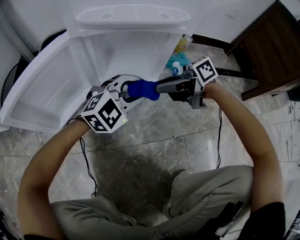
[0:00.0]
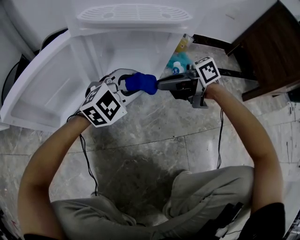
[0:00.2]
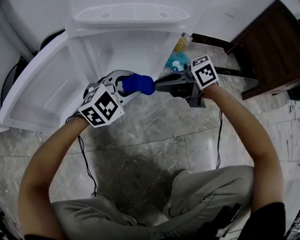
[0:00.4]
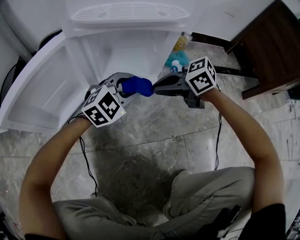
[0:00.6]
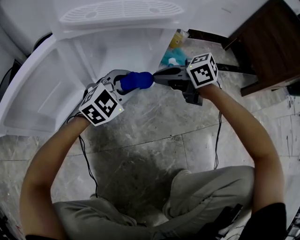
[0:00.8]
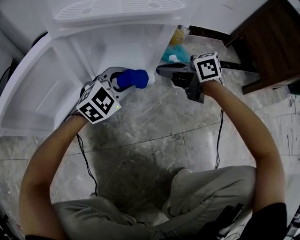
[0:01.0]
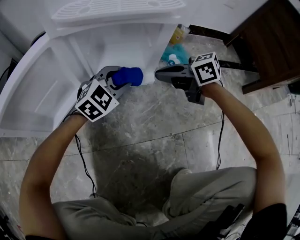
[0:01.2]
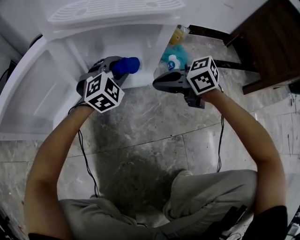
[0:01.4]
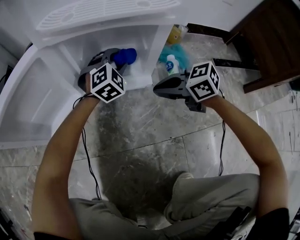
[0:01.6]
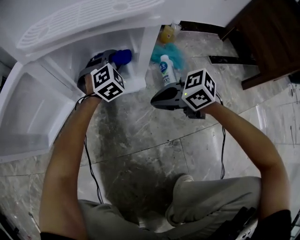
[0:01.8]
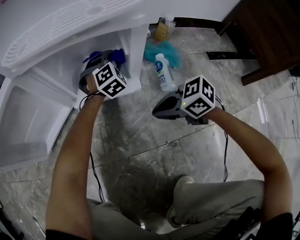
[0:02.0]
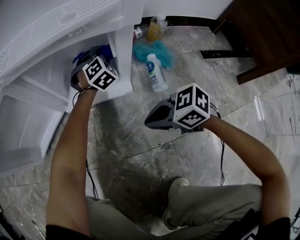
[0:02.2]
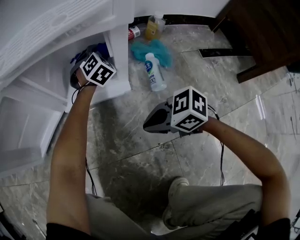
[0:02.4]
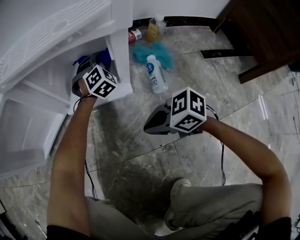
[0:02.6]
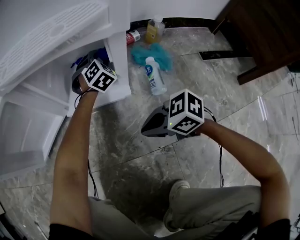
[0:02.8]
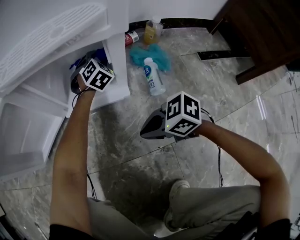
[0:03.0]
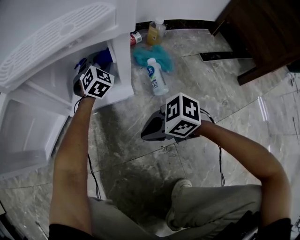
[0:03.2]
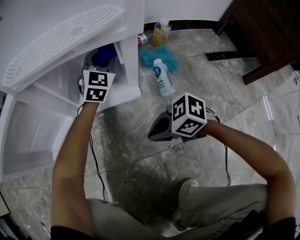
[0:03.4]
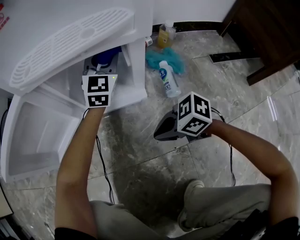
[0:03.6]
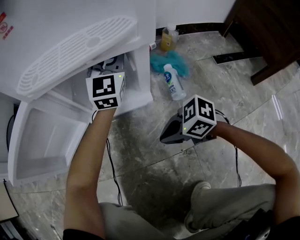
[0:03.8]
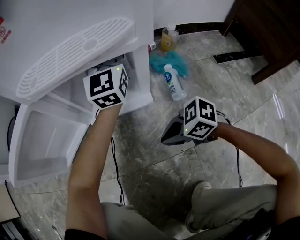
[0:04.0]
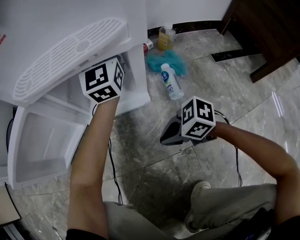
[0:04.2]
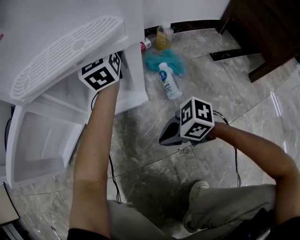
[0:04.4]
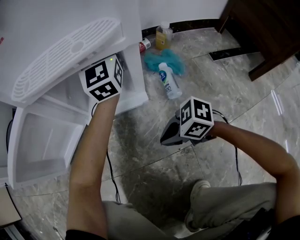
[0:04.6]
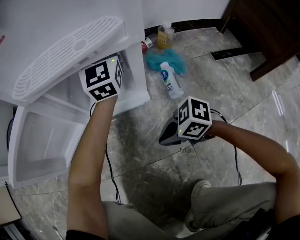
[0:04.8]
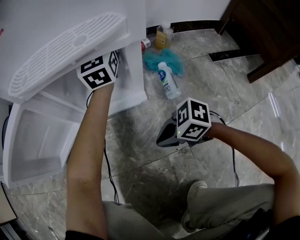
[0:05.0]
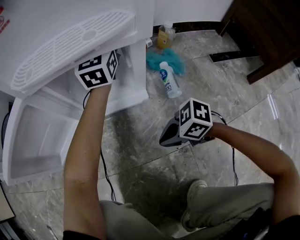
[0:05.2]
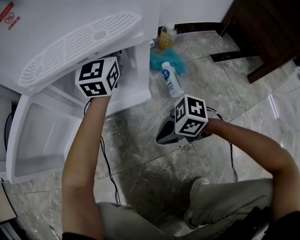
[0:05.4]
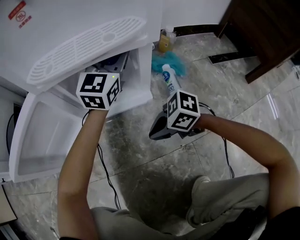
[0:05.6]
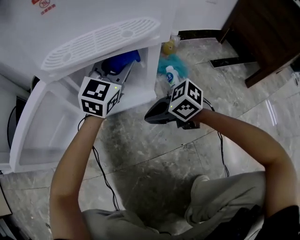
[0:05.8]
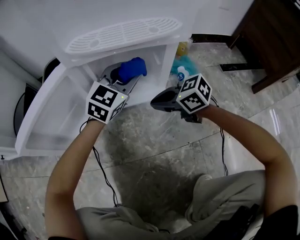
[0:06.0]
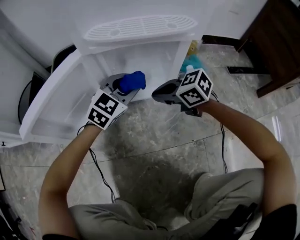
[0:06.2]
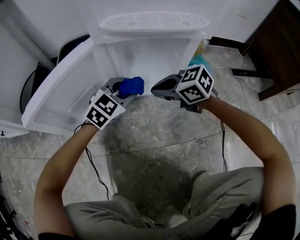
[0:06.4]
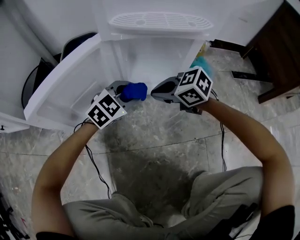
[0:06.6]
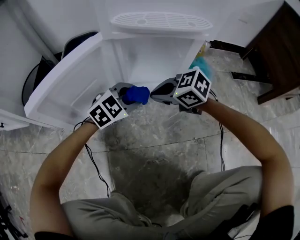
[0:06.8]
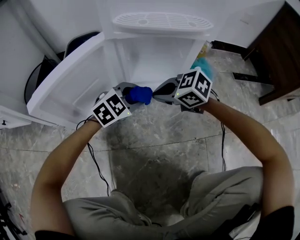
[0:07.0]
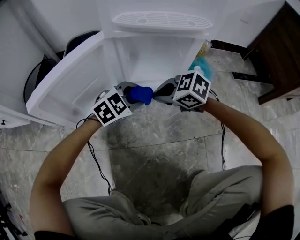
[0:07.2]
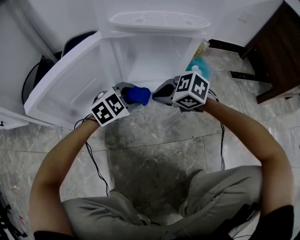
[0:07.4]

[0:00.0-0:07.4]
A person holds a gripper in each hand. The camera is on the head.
0:00.0 to 0:01.4: The right gripper changes place by about 5 cm, turns by about 30 degrees, and closes. Meanwhile the left gripper ends up about 15 cm from where it was, and swivels roughly 20 degrees.
0:01.4 to 0:03.0: The left gripper goes about 20 cm to the right, forward and downward, and changes its angle by approximately 20 degrees. Meanwhile the right gripper shifts approximately 10 cm backward and downward.
0:03.0 to 0:04.4: The left gripper travels upward by about 25 cm, and points its fingers roughly 50 degrees further upward.
0:04.4 to 0:06.0: The left gripper changes place by about 20 cm, and changes its angle by about 40 degrees. The right gripper shifts by about 15 cm, and rotates approximately 20 degrees.
0:06.0 to 0:07.4: The right gripper ends up about 5 cm from where it was, and swivels some 30 degrees; the left gripper shifts by some 15 cm, and changes its angle by about 30 degrees.

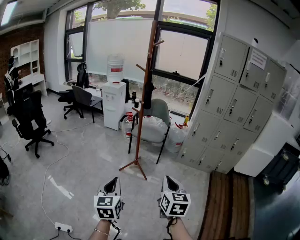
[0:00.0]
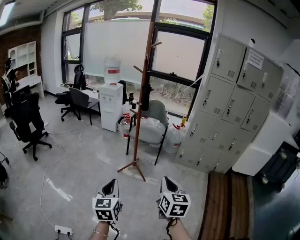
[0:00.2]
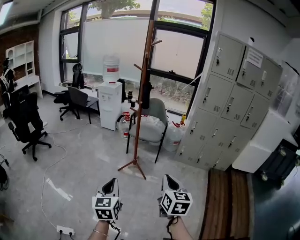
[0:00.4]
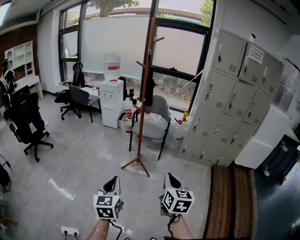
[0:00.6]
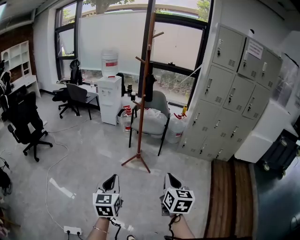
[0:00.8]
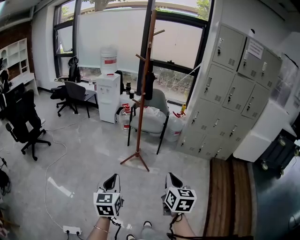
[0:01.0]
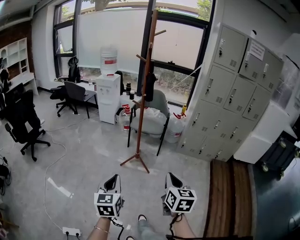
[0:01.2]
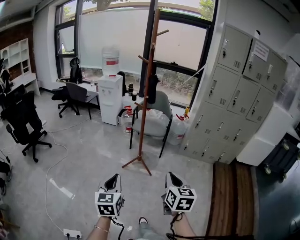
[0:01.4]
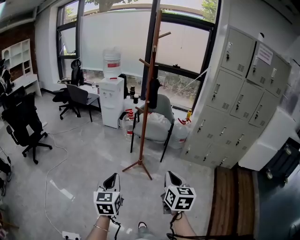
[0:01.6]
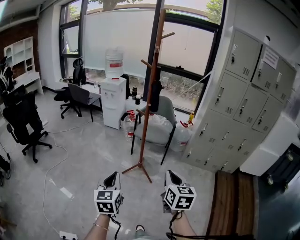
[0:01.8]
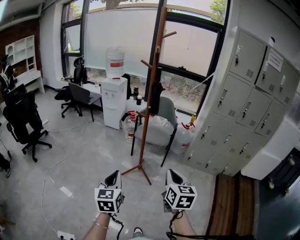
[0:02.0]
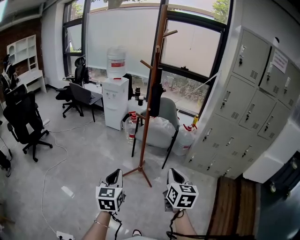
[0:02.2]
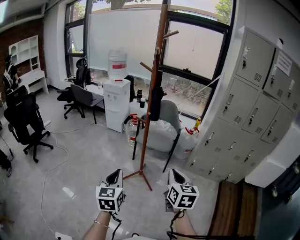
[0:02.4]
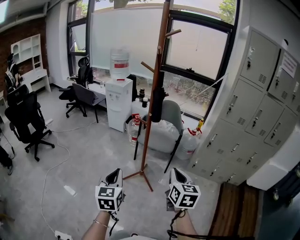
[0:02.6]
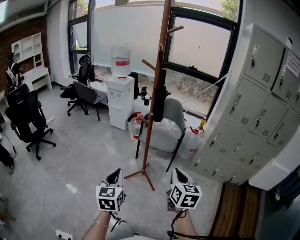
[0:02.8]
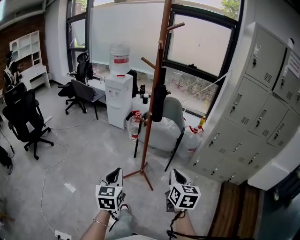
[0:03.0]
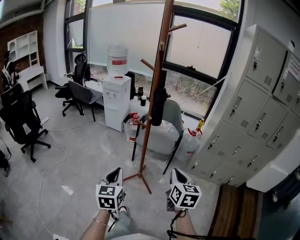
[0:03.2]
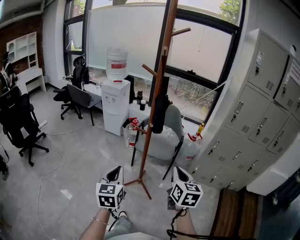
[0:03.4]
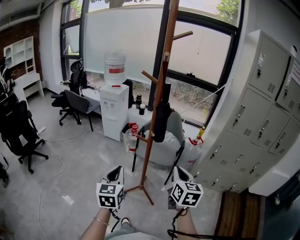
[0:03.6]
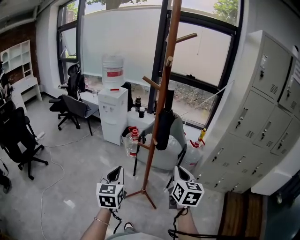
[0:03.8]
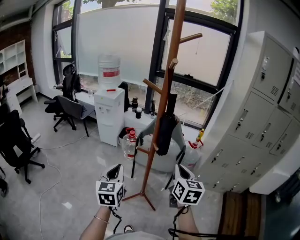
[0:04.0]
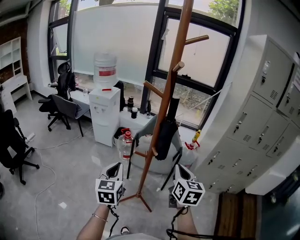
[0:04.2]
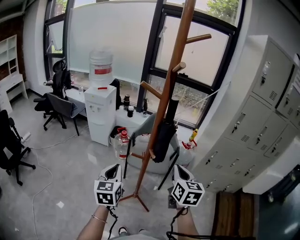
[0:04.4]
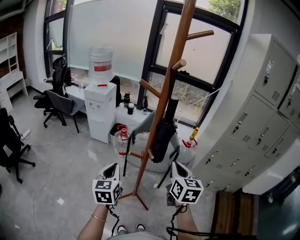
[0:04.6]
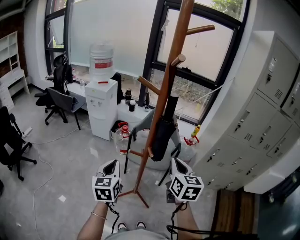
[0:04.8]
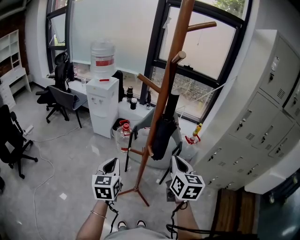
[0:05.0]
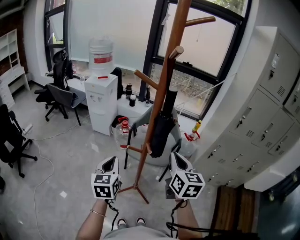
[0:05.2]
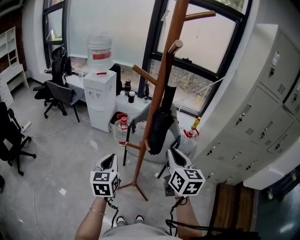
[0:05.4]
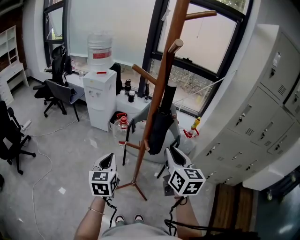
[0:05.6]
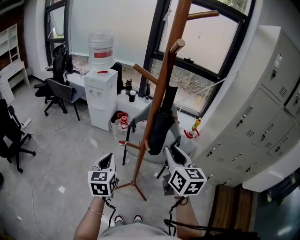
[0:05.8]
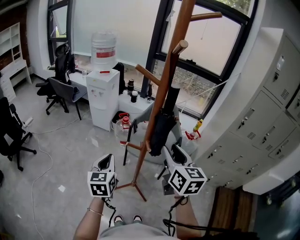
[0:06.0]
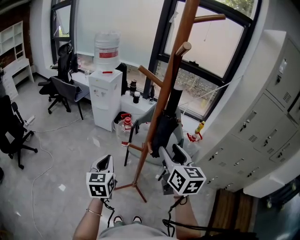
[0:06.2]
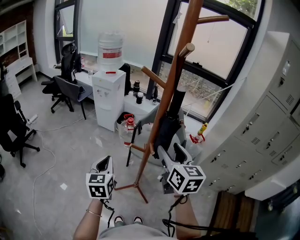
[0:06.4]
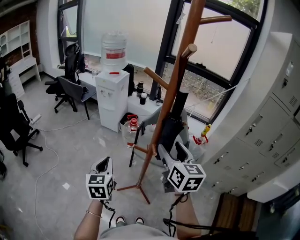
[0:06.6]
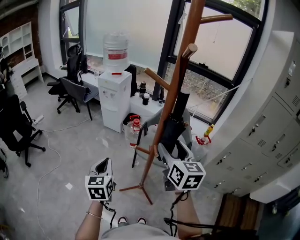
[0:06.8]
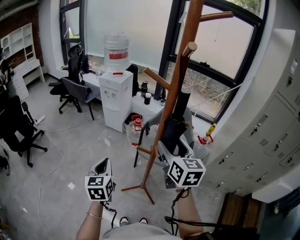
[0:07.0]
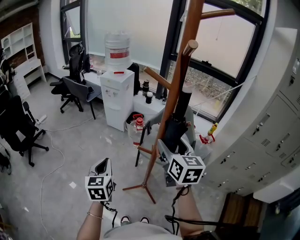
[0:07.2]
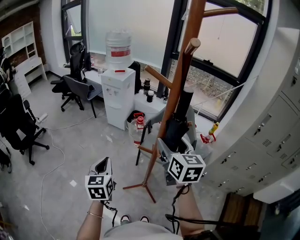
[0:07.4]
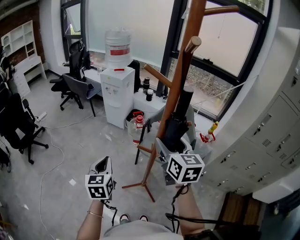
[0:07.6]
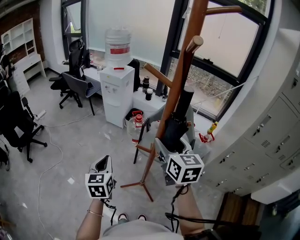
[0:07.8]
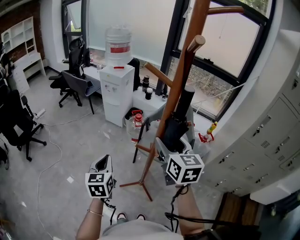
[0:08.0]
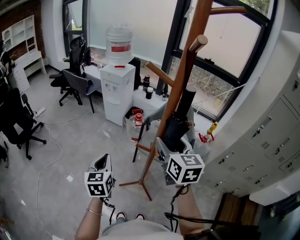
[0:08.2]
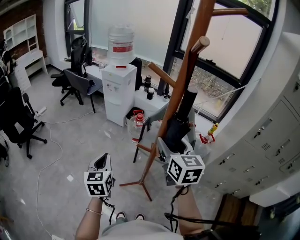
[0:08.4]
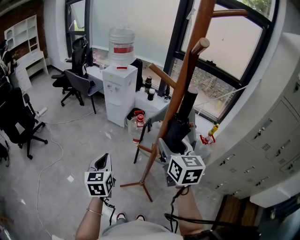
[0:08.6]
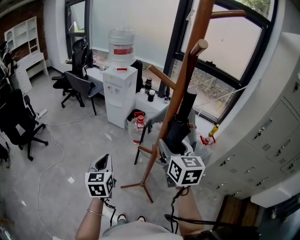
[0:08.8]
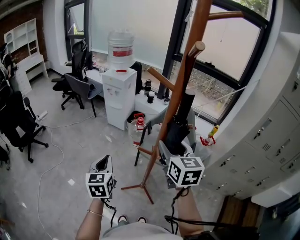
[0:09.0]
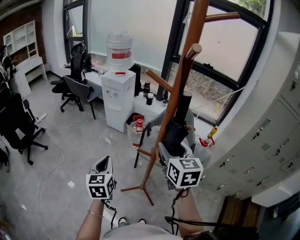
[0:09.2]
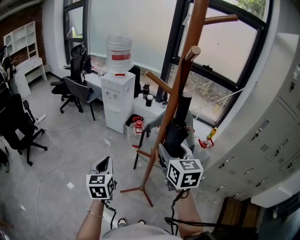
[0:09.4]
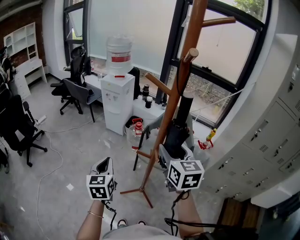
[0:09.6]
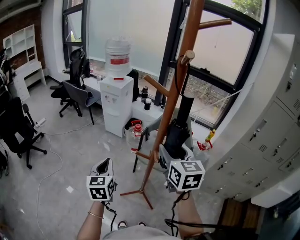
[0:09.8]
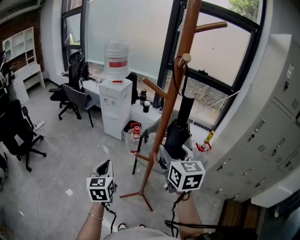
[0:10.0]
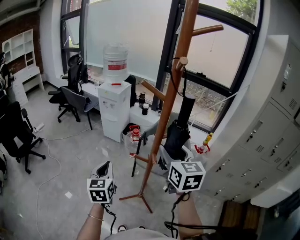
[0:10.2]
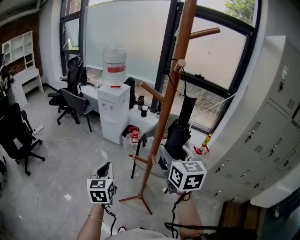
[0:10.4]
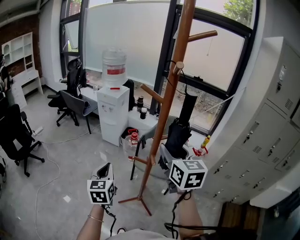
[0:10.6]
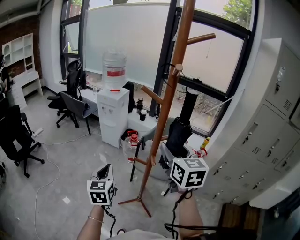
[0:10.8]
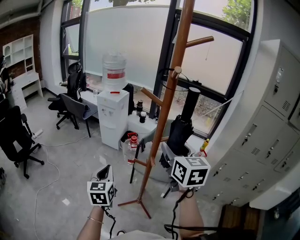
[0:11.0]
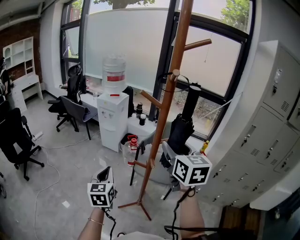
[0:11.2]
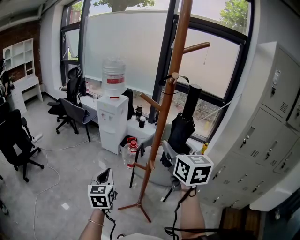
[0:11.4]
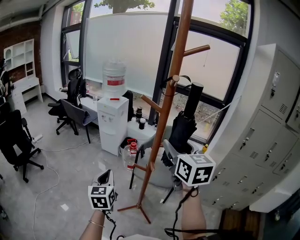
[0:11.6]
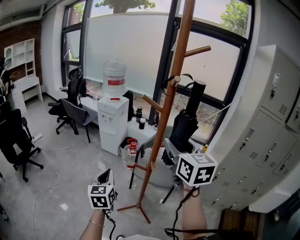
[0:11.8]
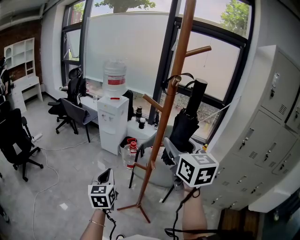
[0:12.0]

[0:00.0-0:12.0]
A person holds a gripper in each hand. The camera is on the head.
0:00.0 to 0:01.6: The two grippers go some 10 cm forward and to the left.
0:01.6 to 0:03.0: Both grippers travel together forward, some 20 cm.
0:03.0 to 0:04.4: Both grippers move forward, some 25 cm.
0:04.4 to 0:06.0: The right gripper moves roughly 5 cm, and opens up.
0:06.0 to 0:07.6: The left gripper is displaced to the left by approximately 5 cm; the right gripper shifts roughly 10 cm forward, and opens its fingers.
0:07.6 to 0:09.0: The grippers move only a little.
0:09.0 to 0:10.4: The right gripper moves upward, some 5 cm.
0:10.4 to 0:12.0: The right gripper shifts about 10 cm upward.

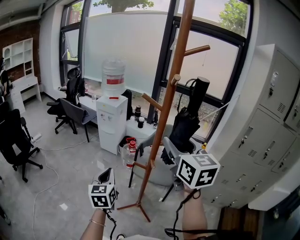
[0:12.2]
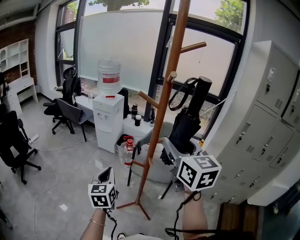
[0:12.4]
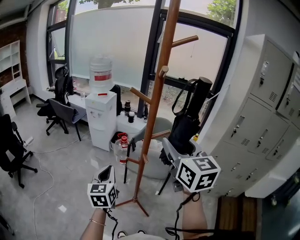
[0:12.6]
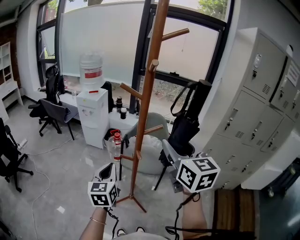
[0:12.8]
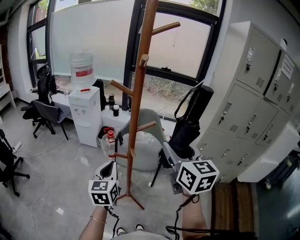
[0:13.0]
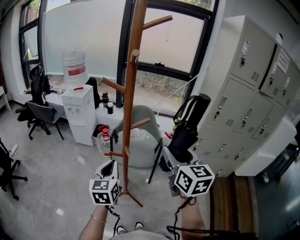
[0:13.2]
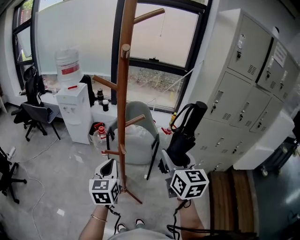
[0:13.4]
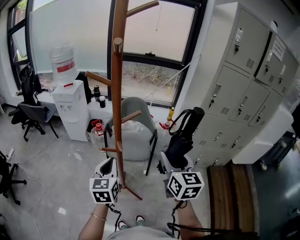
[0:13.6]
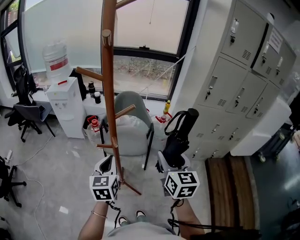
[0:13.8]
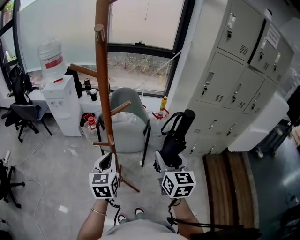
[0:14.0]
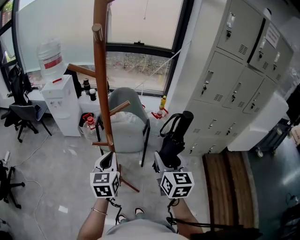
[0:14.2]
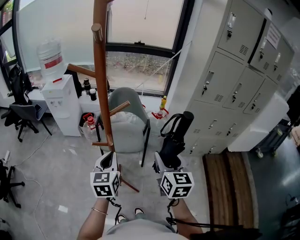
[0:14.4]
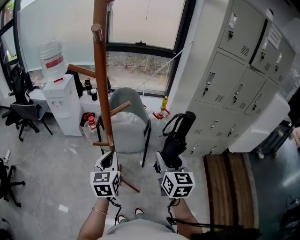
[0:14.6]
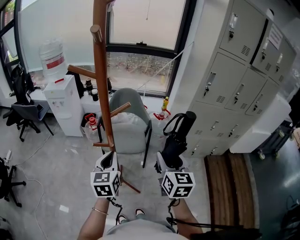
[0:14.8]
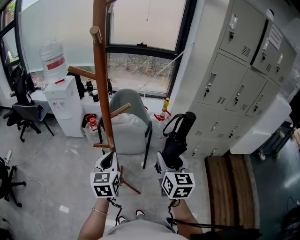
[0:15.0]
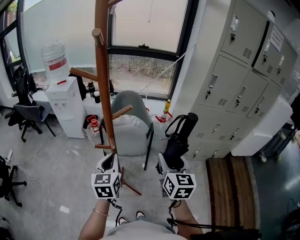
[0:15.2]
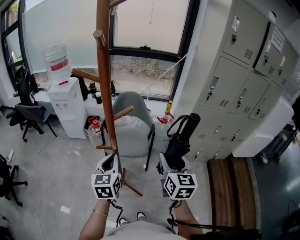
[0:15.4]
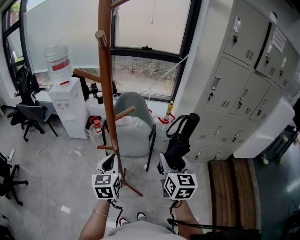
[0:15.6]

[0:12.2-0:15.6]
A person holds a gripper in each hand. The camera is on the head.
0:12.2 to 0:13.8: The right gripper heads downward, covering approximately 20 cm, and turns by about 30 degrees. The left gripper changes place by about 15 cm, and changes its angle by roughly 20 degrees.
0:13.8 to 0:15.6: The grippers make only small movements.

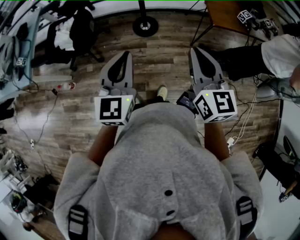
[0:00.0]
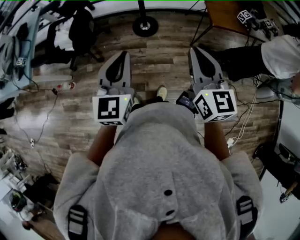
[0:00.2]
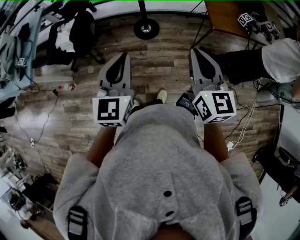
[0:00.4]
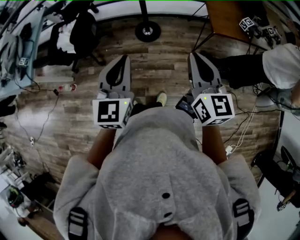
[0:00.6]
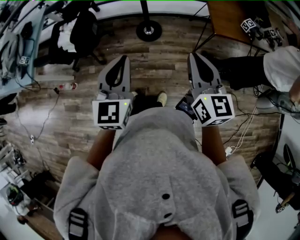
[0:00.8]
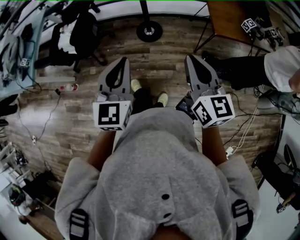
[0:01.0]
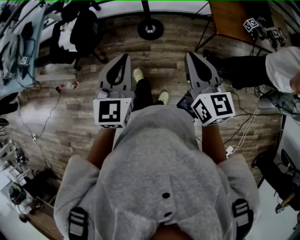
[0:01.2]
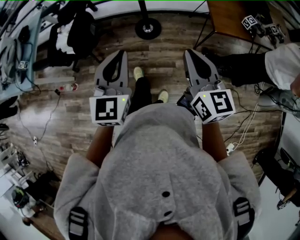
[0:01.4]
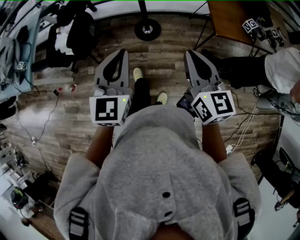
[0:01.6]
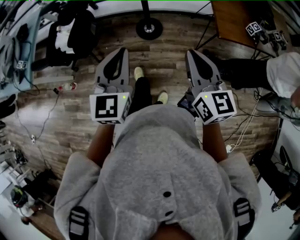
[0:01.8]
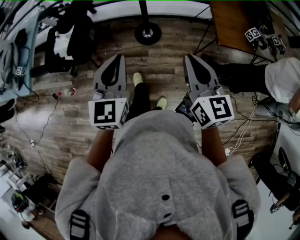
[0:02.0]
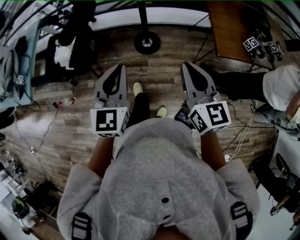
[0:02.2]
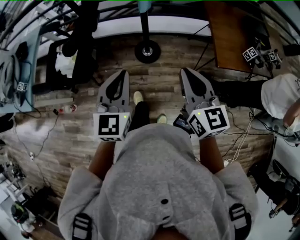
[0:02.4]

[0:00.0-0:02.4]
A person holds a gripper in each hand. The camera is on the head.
0:00.0 to 0:01.2: The left gripper moves about 5 cm. Meanwhile the right gripper ends up approximately 5 cm from where it was.
0:01.2 to 0:02.4: The two grippers go about 15 cm forward.
